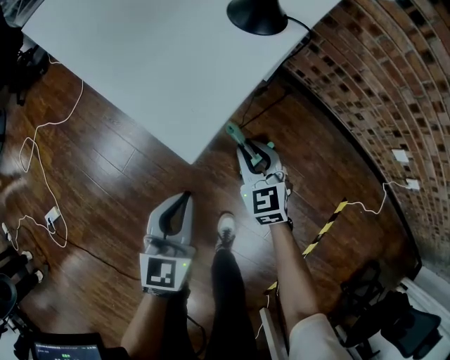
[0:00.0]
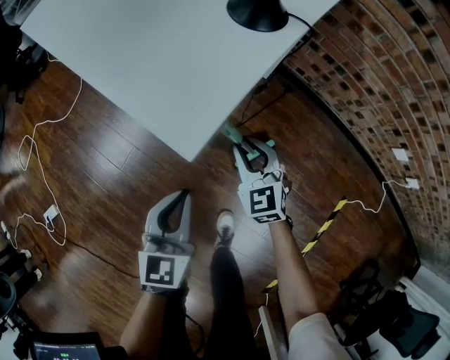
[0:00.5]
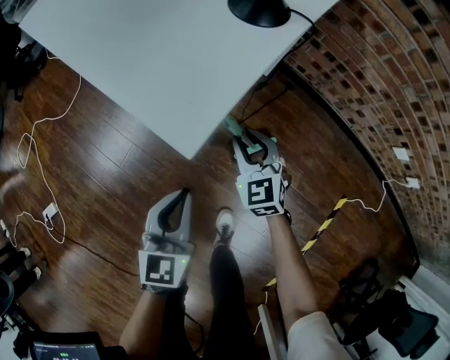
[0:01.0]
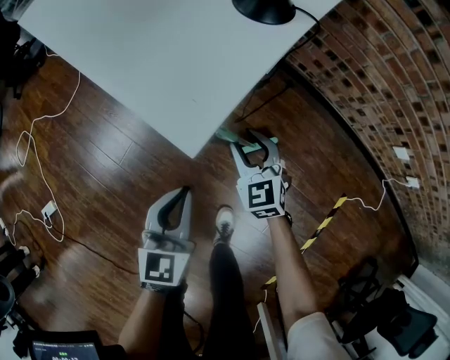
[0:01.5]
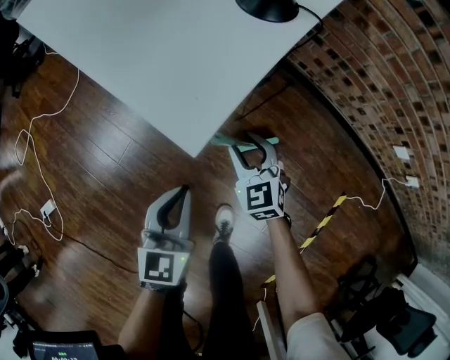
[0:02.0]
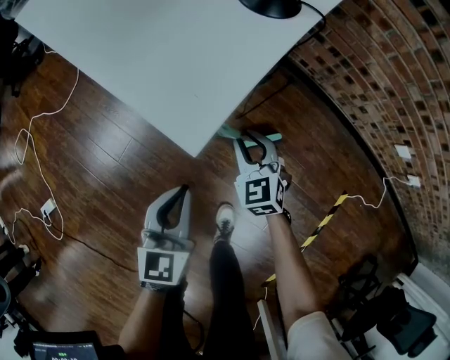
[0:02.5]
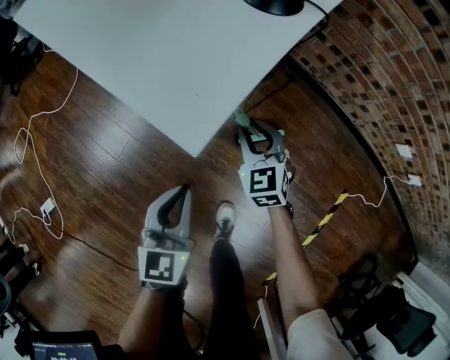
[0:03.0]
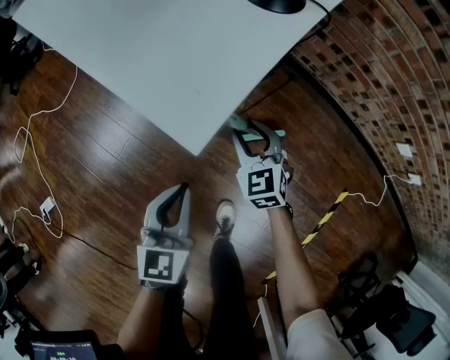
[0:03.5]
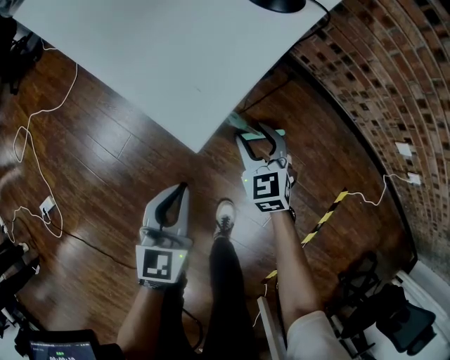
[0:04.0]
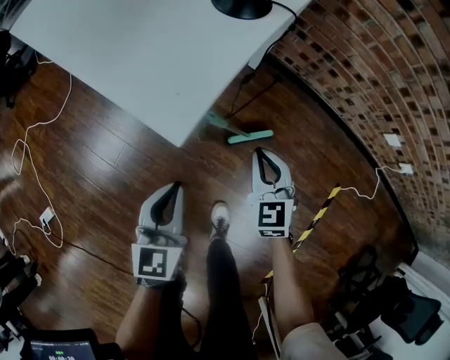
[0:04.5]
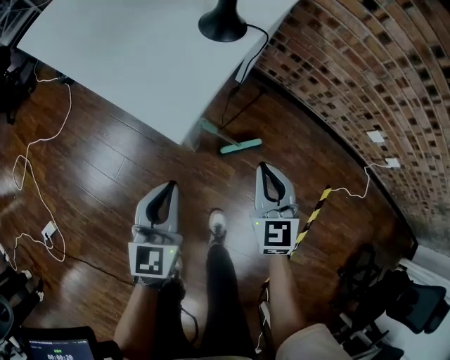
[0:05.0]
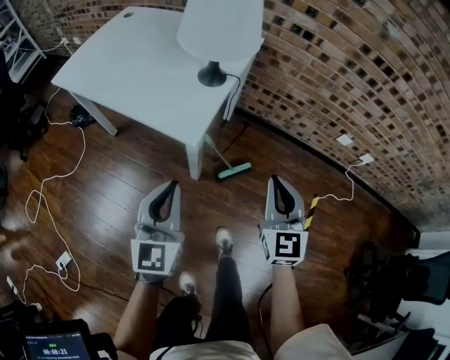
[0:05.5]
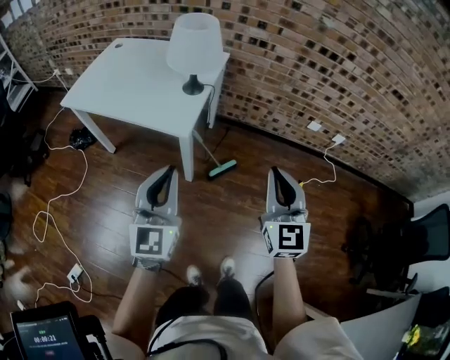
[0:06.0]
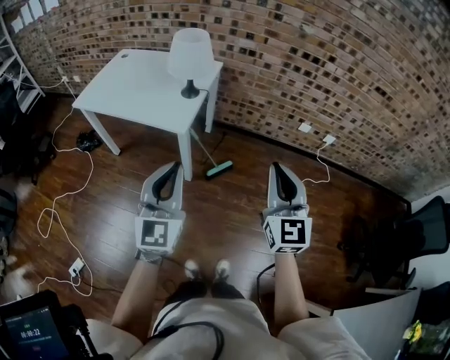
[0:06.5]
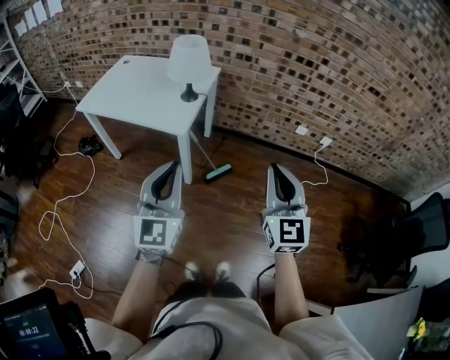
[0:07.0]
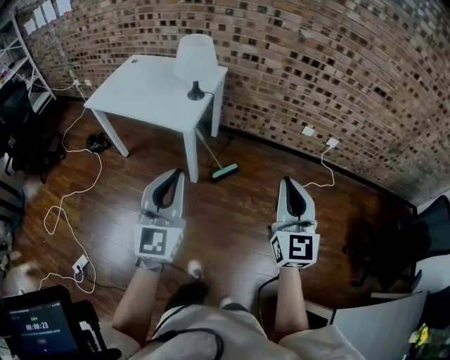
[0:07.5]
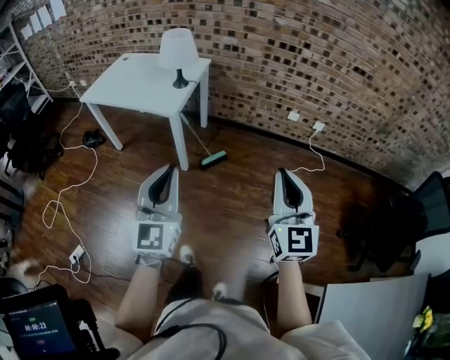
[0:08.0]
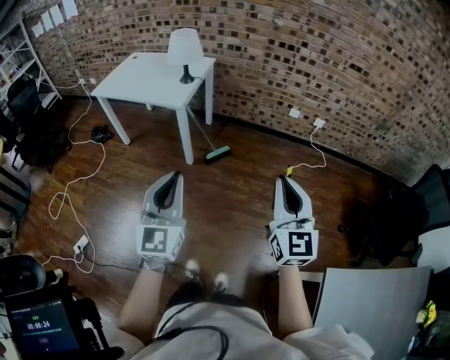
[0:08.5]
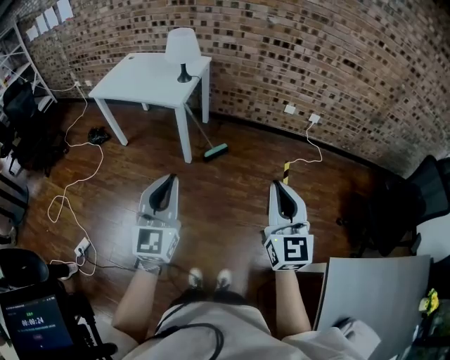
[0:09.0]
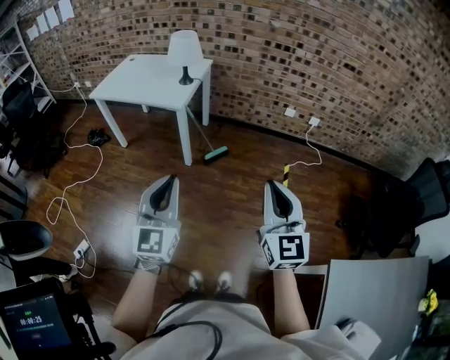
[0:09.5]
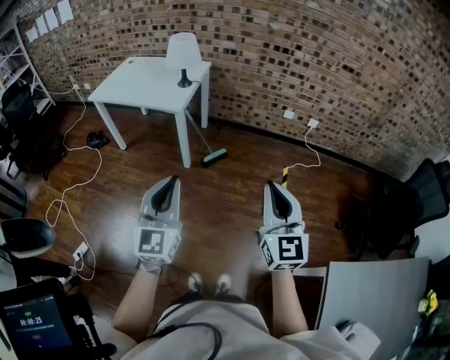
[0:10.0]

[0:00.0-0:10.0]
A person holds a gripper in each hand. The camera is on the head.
0:00.0 to 0:02.0: The right gripper opens up.
0:02.0 to 0:04.0: The grippers move only a little.
0:04.0 to 0:06.0: The left gripper goes approximately 40 cm upward, and changes its angle by some 30 degrees. Meanwhile the right gripper heads upward and backward, covering about 60 cm, tilts its fingers about 30 degrees upward, and closes.
0:06.0 to 0:08.0: The right gripper moves backward, to the right and upward, roughly 35 cm. The left gripper is displaced backward and to the right by about 30 cm.
0:08.0 to 0:10.0: Both grippers move backward, about 15 cm.

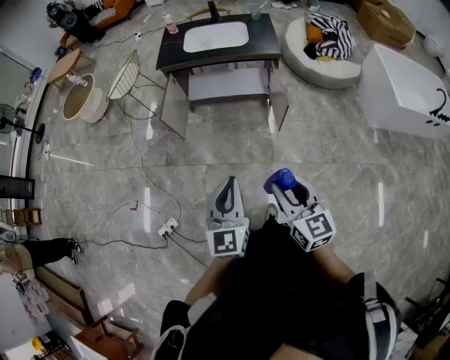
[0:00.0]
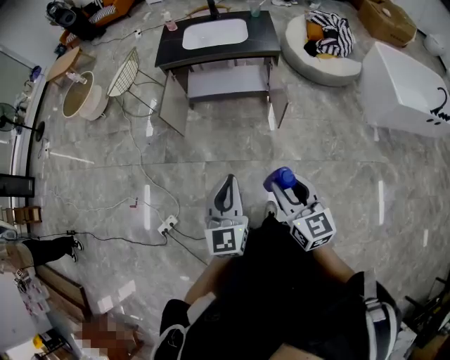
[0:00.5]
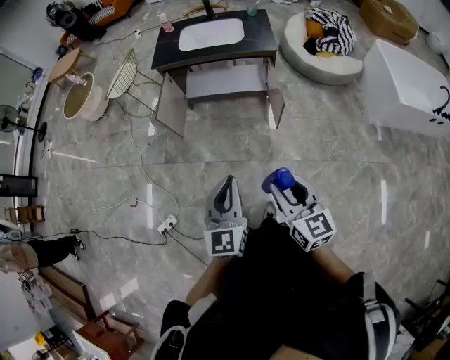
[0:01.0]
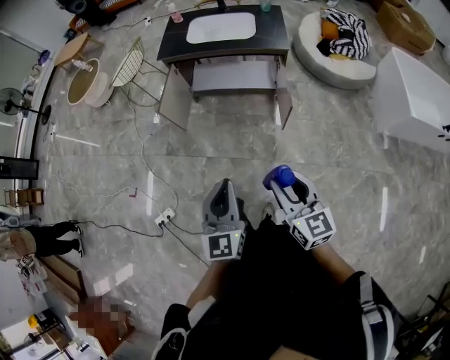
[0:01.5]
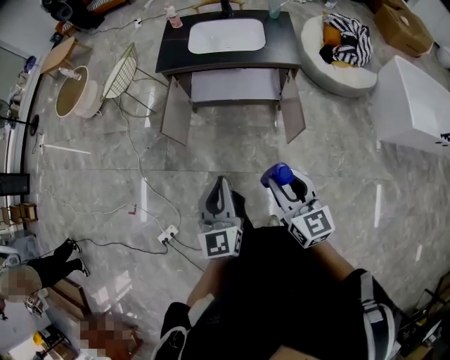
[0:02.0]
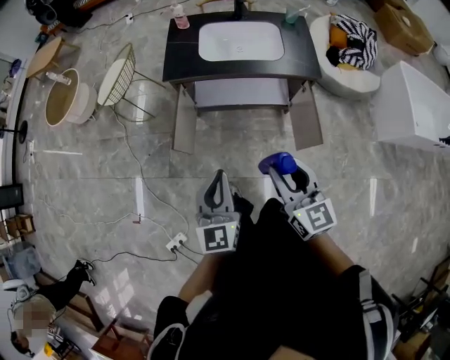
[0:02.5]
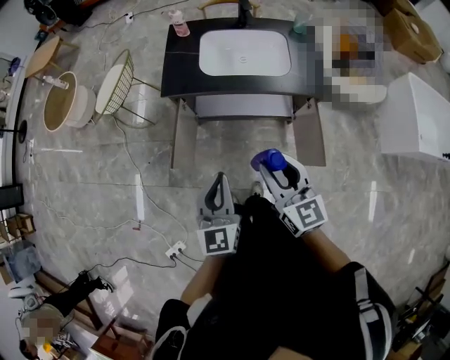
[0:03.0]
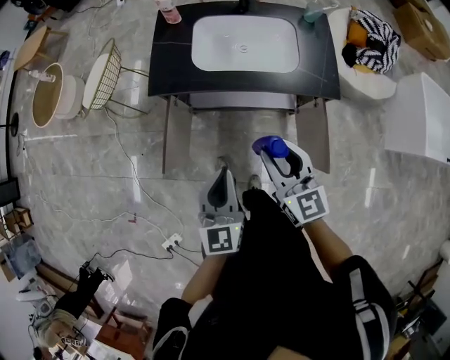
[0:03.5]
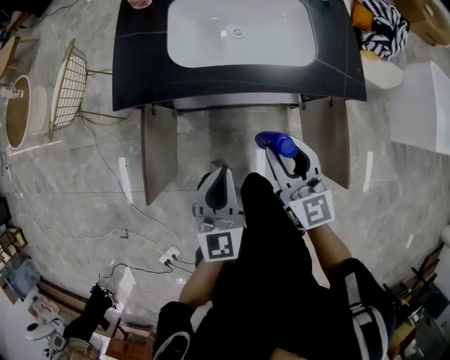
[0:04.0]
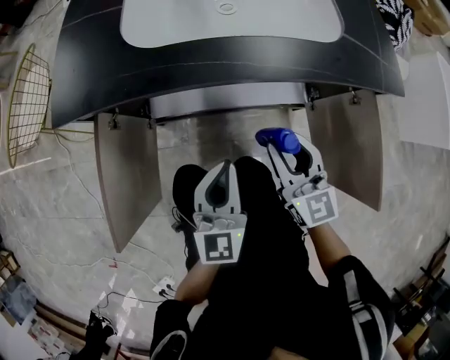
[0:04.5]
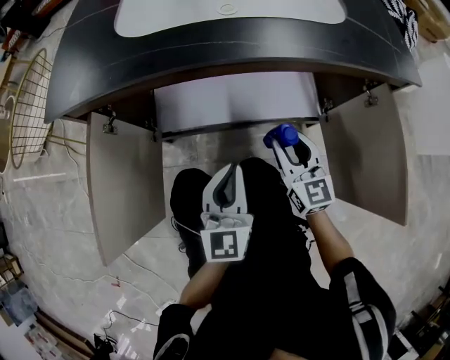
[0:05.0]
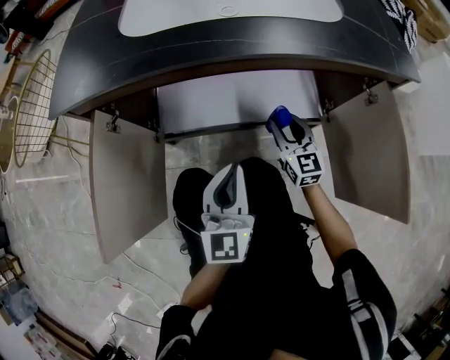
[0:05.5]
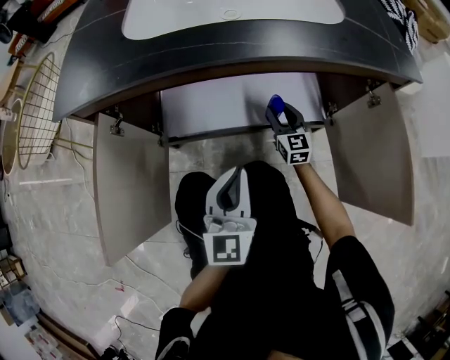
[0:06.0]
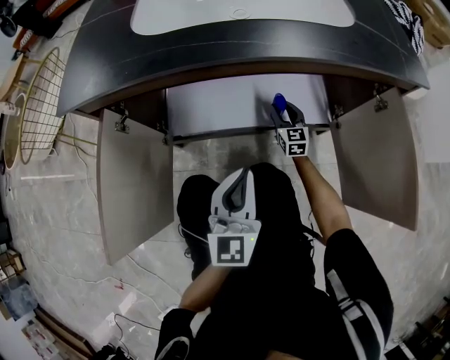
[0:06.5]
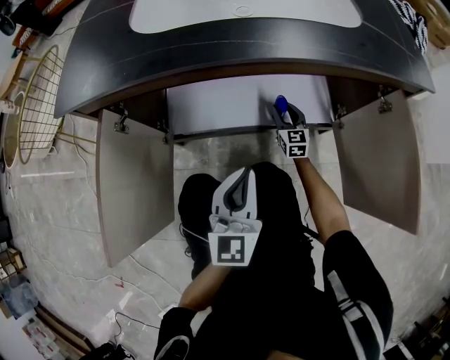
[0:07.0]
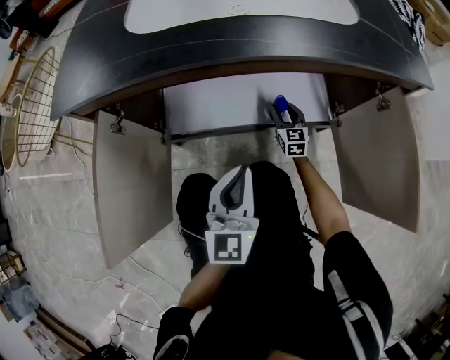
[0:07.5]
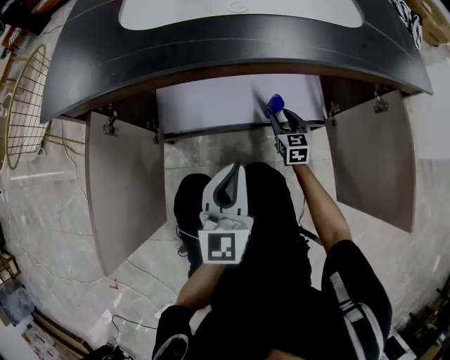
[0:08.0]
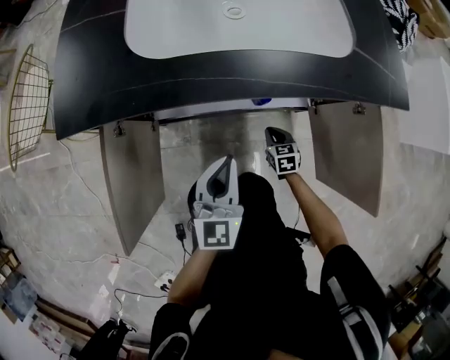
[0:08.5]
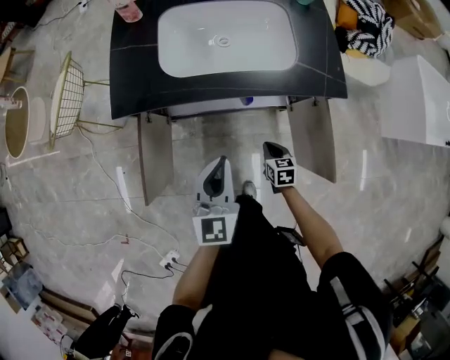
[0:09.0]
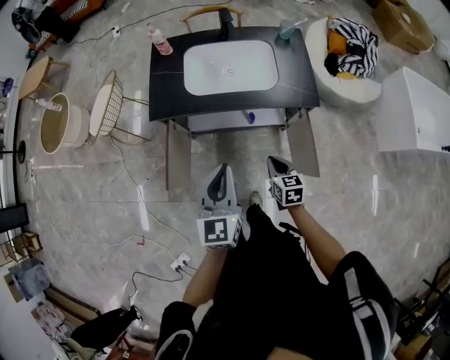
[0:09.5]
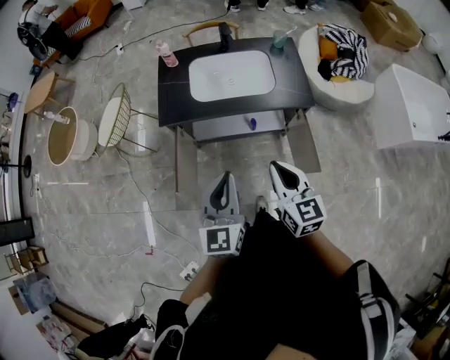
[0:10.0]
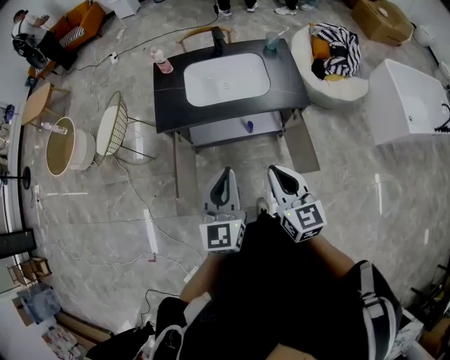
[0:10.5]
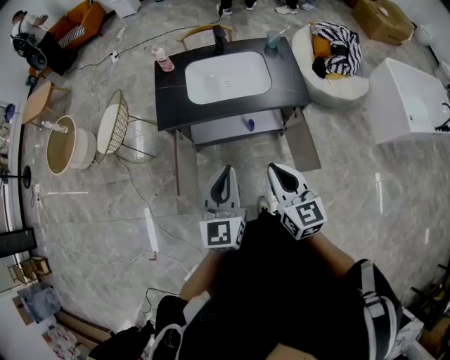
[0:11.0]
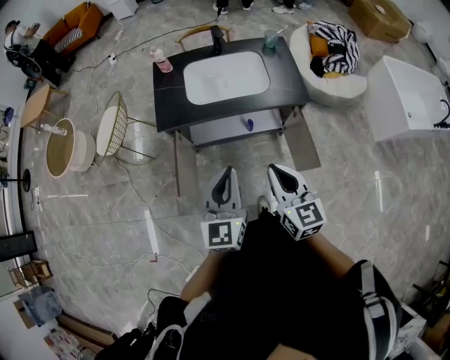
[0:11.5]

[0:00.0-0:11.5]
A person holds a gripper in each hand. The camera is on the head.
0:00.0 to 0:02.0: The grippers both shift forward by about 20 cm.
0:02.0 to 0:04.0: The pair of grippers is taken forward, some 50 cm. The grippers both shift downward by roughly 25 cm.
0:04.0 to 0:06.0: The right gripper travels downward by roughly 50 cm. Meanwhile the left gripper is displaced downward by some 25 cm.
0:06.0 to 0:07.5: The right gripper heads downward, covering some 10 cm.
0:07.5 to 0:09.5: The right gripper moves upward and backward, roughly 60 cm, changes its angle by about 30 degrees, and closes. The left gripper travels upward by roughly 50 cm.
0:09.5 to 0:11.5: The right gripper travels upward by about 25 cm, and rotates some 30 degrees. Meanwhile the left gripper moves upward and backward, approximately 10 cm.

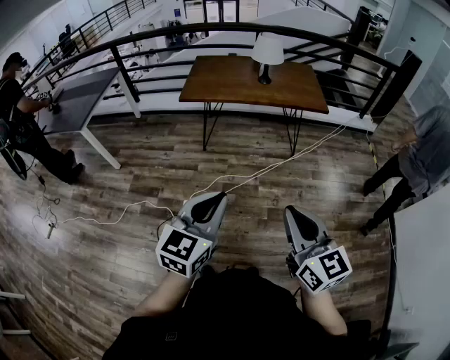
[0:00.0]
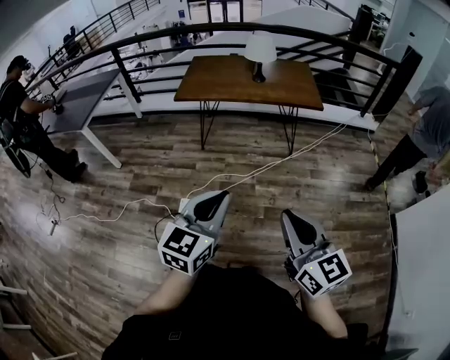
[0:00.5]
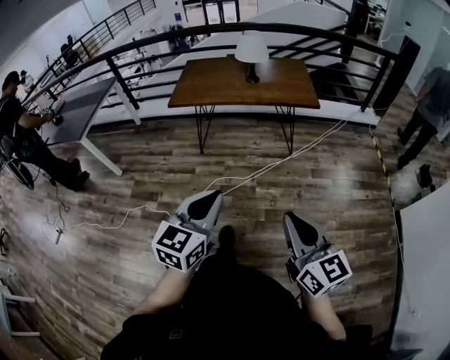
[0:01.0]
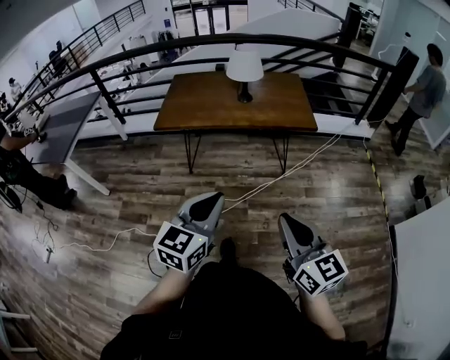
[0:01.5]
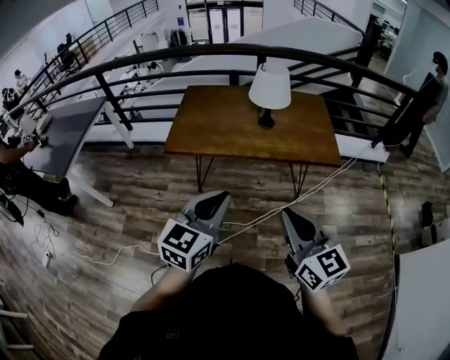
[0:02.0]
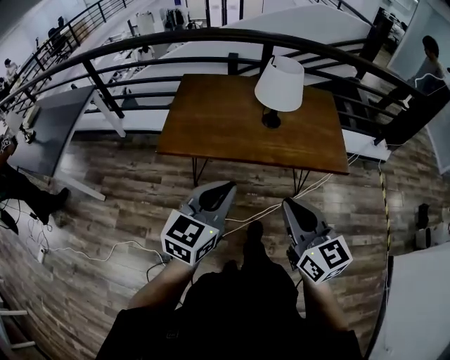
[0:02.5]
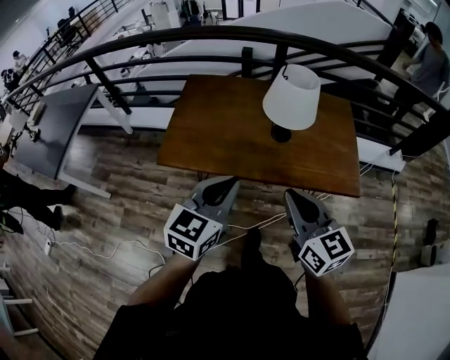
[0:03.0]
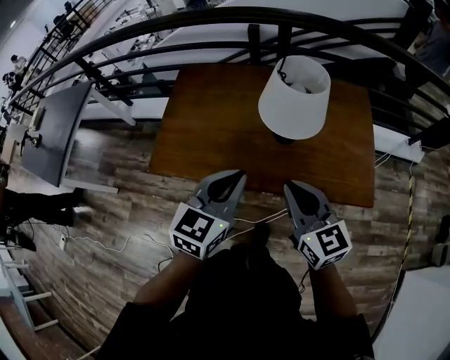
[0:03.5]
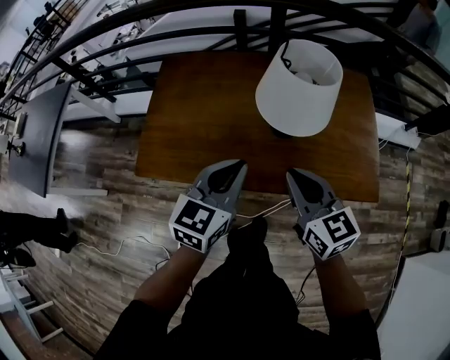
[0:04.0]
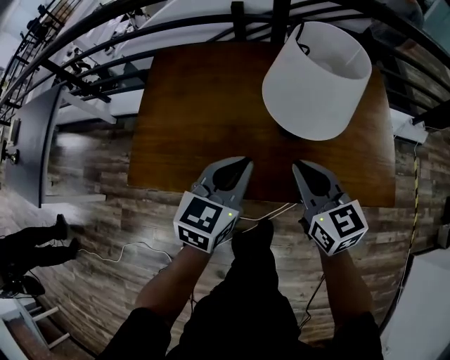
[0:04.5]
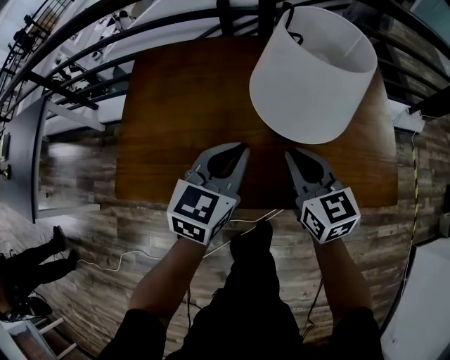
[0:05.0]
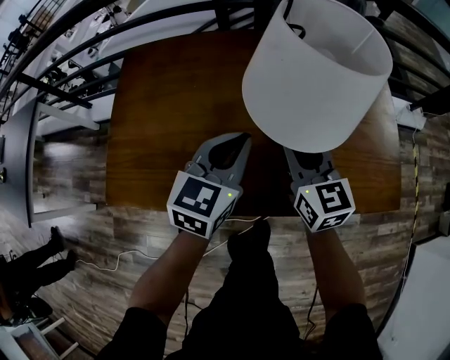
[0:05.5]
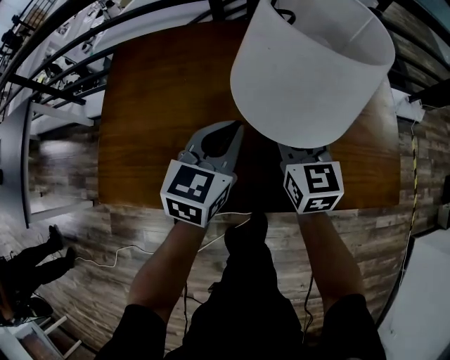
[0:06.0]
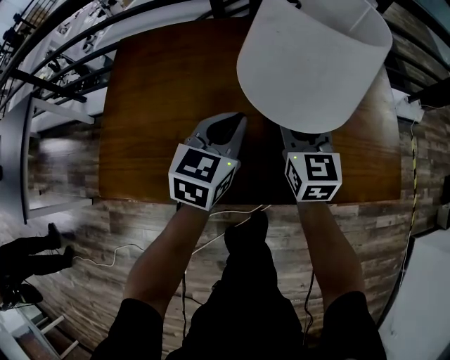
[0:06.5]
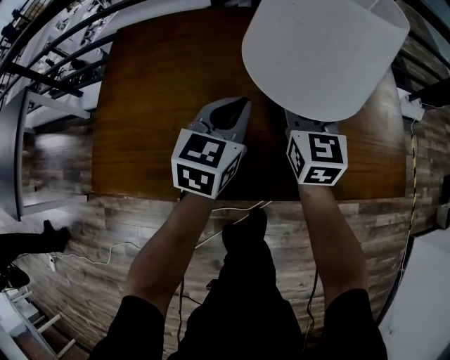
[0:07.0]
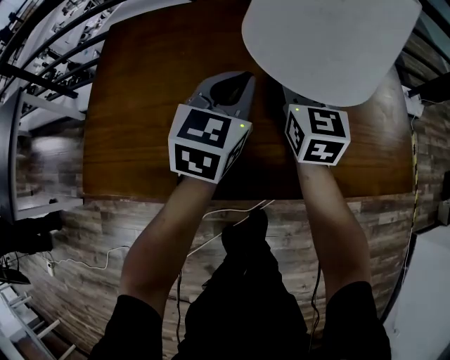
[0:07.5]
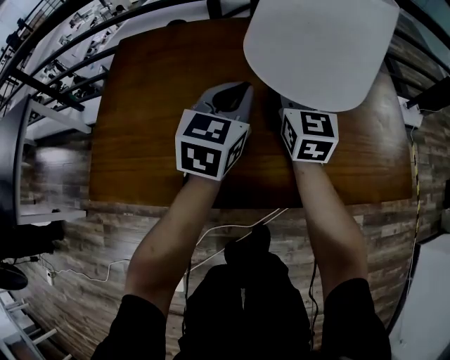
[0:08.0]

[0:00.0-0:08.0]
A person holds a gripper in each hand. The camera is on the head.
0:00.0 to 0:02.0: The two grippers go approximately 40 cm forward.
0:02.0 to 0:04.0: The two grippers travel together, forward, some 50 cm.
0:04.0 to 0:06.0: Both grippers move forward and downward, some 25 cm. The right gripper opens up.
0:06.0 to 0:08.0: The right gripper travels forward by some 5 cm.
